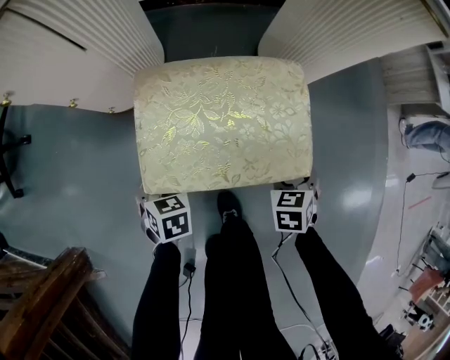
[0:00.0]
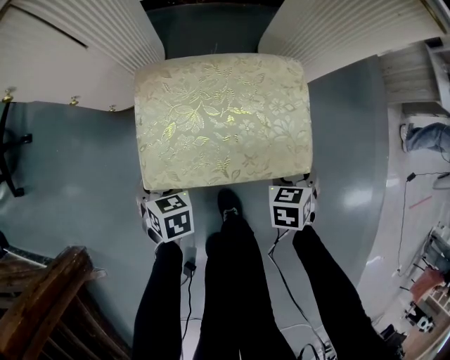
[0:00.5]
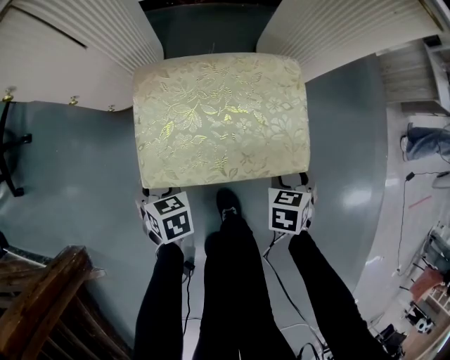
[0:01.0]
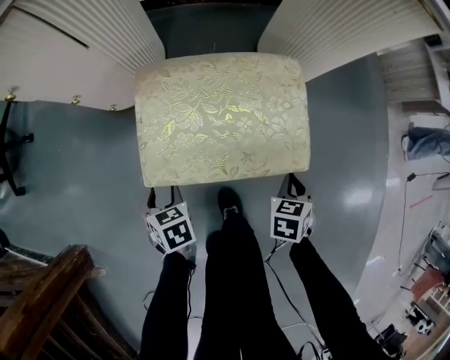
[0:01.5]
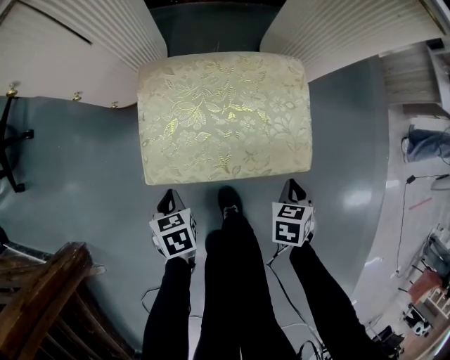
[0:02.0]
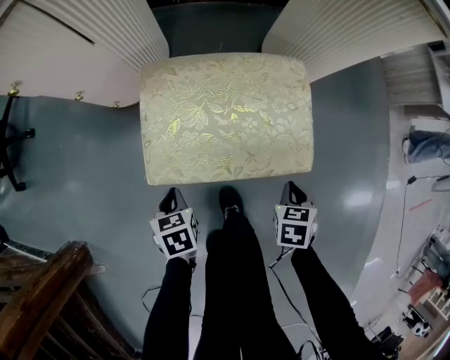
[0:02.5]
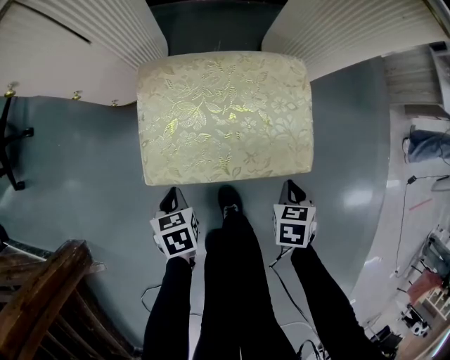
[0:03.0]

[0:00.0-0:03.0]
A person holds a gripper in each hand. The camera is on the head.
0:00.0 to 0:01.5: Both grippers move backward, roughly 5 cm. The right gripper closes.
0:01.5 to 0:03.0: The left gripper closes up.

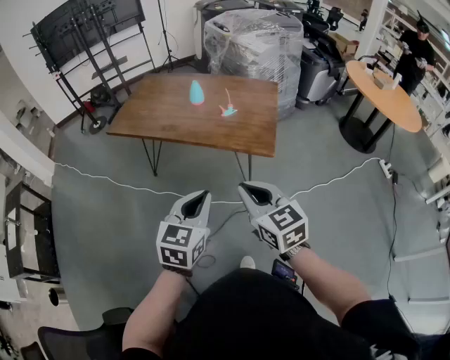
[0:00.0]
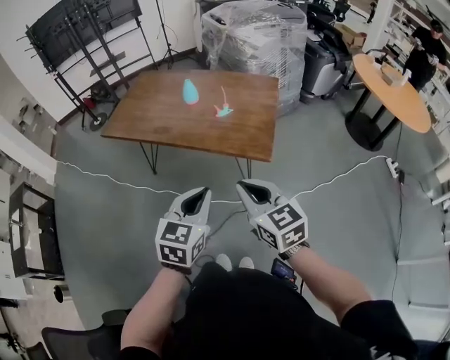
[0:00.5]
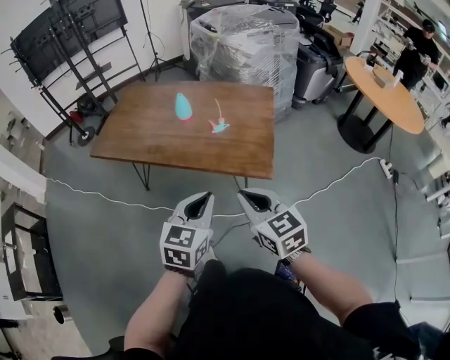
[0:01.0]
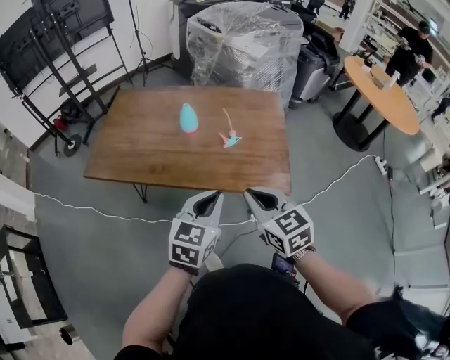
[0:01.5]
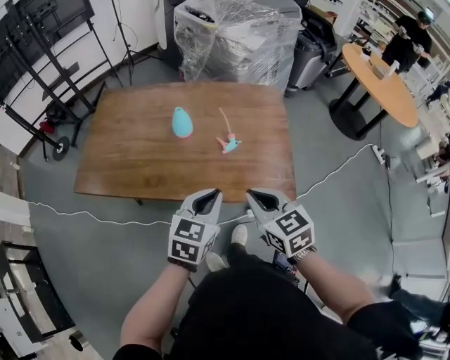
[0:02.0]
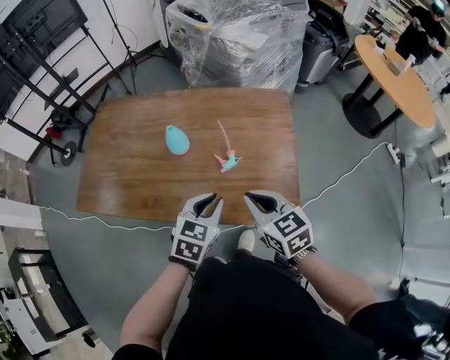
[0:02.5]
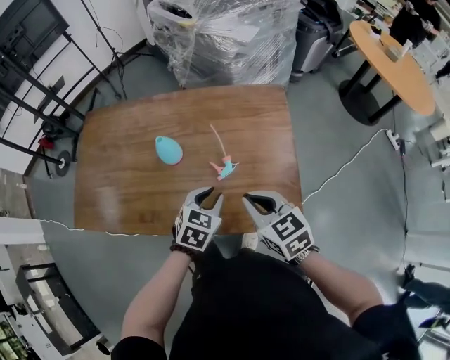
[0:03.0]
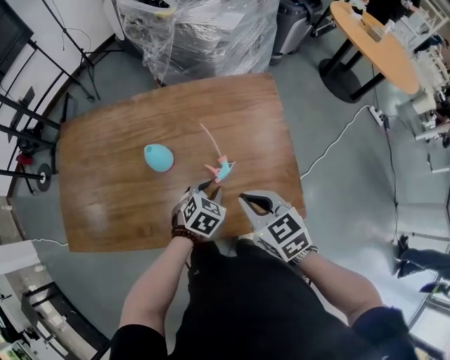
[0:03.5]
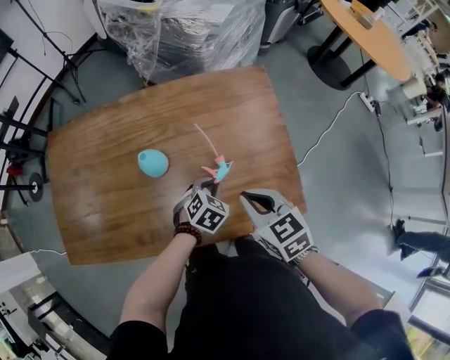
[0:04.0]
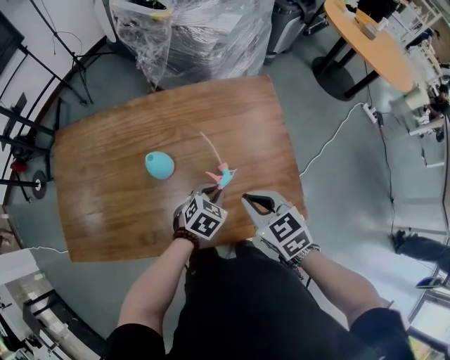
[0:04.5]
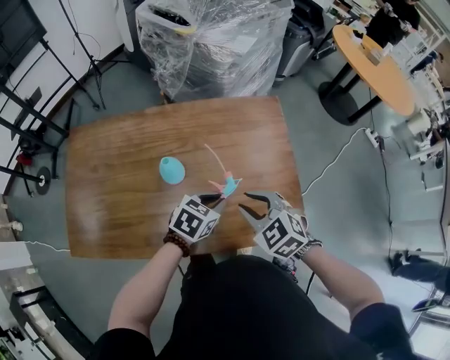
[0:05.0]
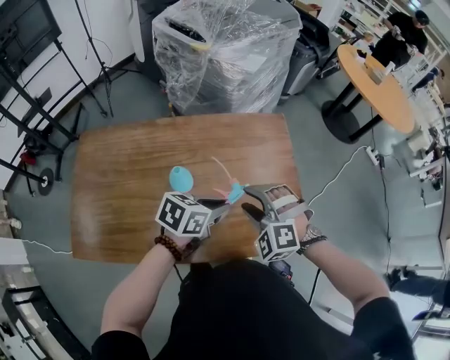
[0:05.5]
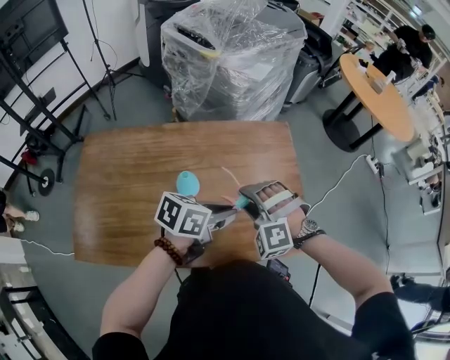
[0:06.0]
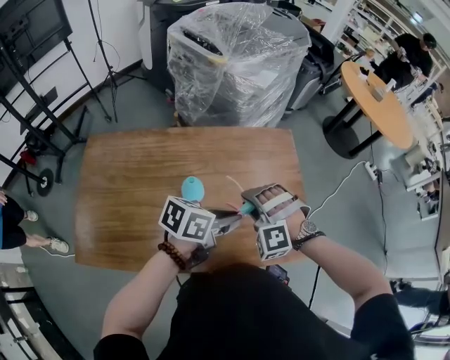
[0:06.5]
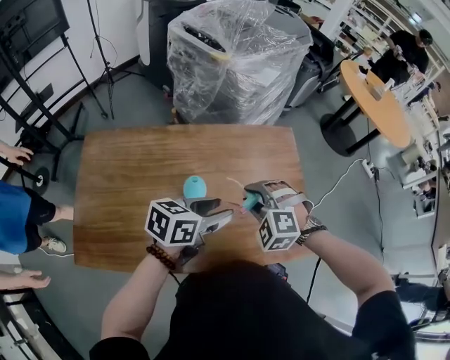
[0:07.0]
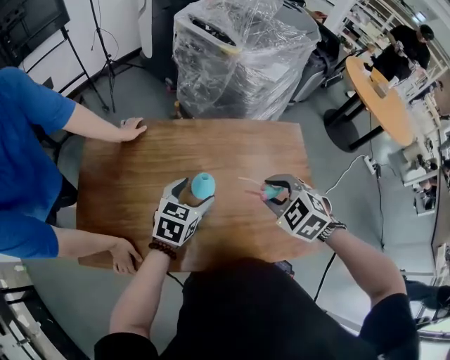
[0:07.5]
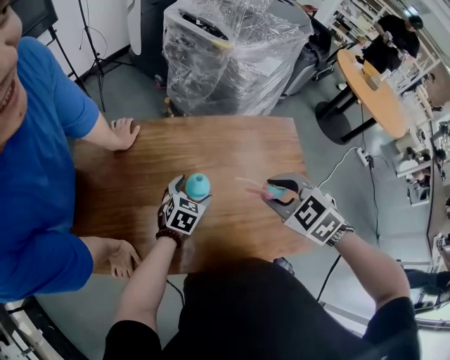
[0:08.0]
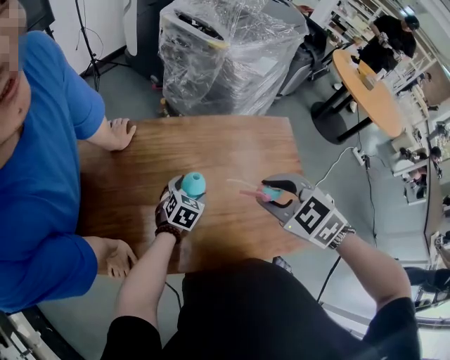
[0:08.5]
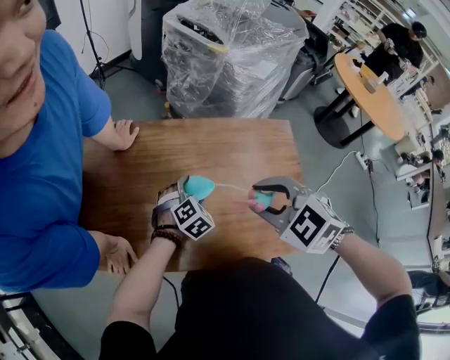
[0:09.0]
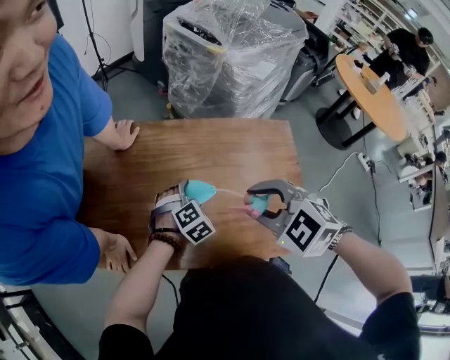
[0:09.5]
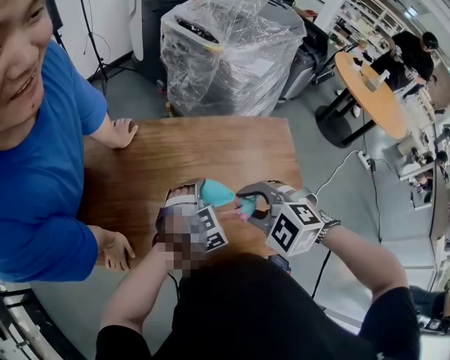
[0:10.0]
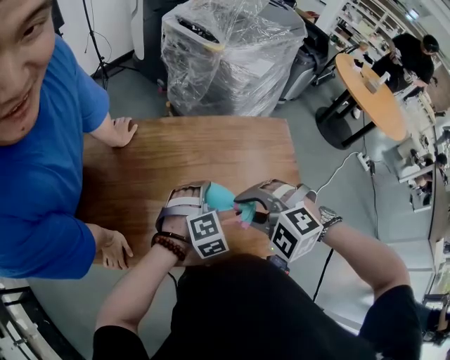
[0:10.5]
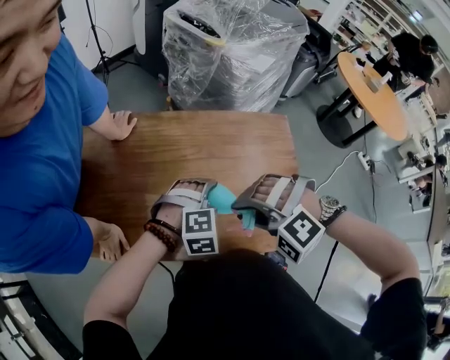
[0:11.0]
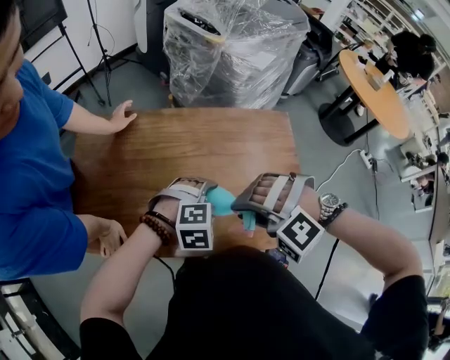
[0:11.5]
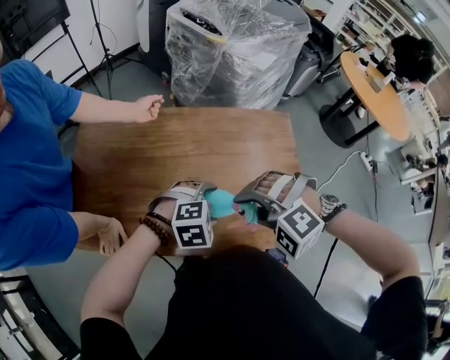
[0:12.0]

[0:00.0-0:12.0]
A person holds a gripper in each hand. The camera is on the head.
0:00.0 to 0:02.0: The two grippers go approximately 30 cm forward. The left gripper swivels approximately 20 degrees.
0:02.0 to 0:04.0: The left gripper goes about 30 cm downward and forward, and tilts its fingers about 30 degrees downward, while the right gripper shifts about 15 cm forward and downward.
0:04.0 to 0:06.0: The right gripper heads to the left, covering approximately 10 cm, rolls counterclockwise, seen from behind, by approximately 90 degrees, and opens. Meanwhile the left gripper moves upward, some 20 cm, and tips its fingers upward by some 30 degrees.
0:06.0 to 0:08.0: The left gripper ends up roughly 25 cm from where it was, rotates about 40 degrees, and opens its fingers. Meanwhile the right gripper travels upward by approximately 5 cm, and twists approximately 50 degrees clockwise, seen from behind.
0:08.0 to 0:10.0: The right gripper heads to the left, covering approximately 5 cm, and changes its angle by roughly 30 degrees; the left gripper heads backward and upward, covering approximately 10 cm, and rolls clockwise, seen from behind, by about 40 degrees.
0:10.0 to 0:12.0: The left gripper moves backward, roughly 10 cm, and turns by approximately 30 degrees; the right gripper moves some 5 cm, and rotates roughly 30 degrees.

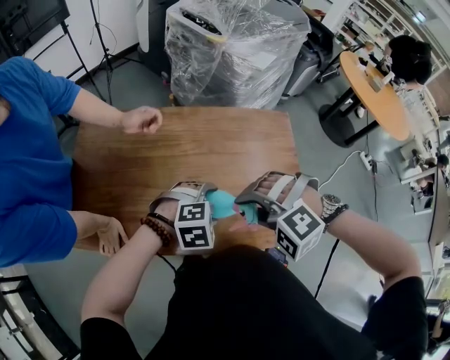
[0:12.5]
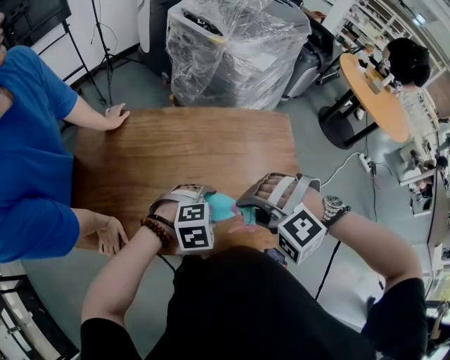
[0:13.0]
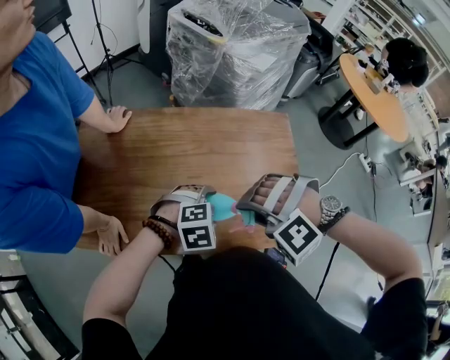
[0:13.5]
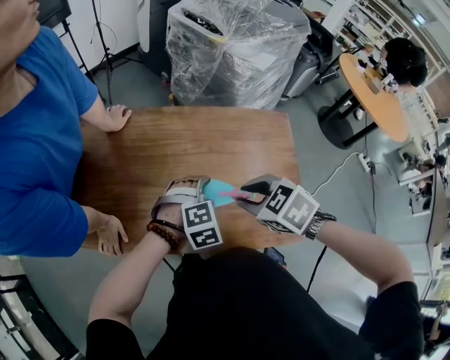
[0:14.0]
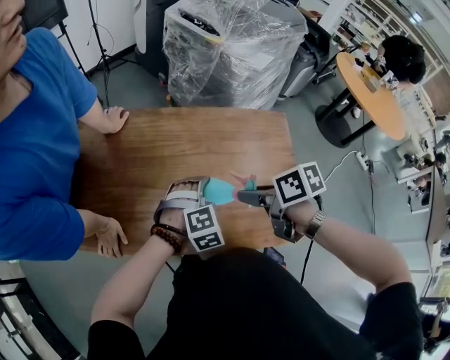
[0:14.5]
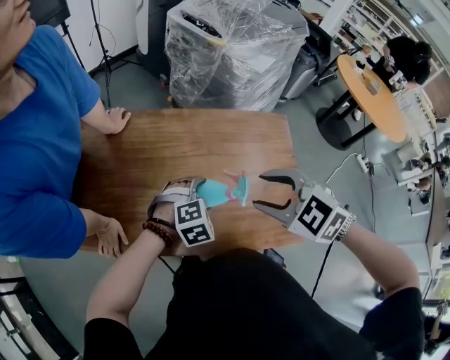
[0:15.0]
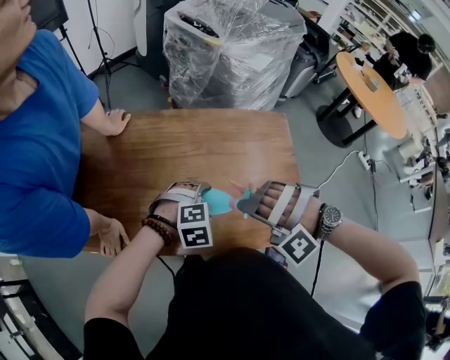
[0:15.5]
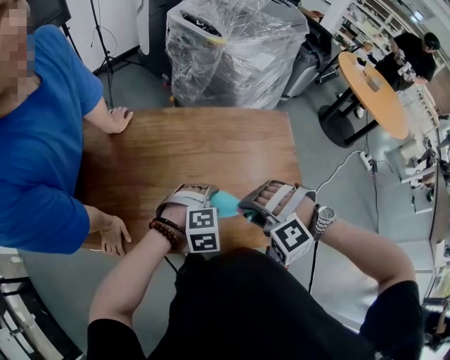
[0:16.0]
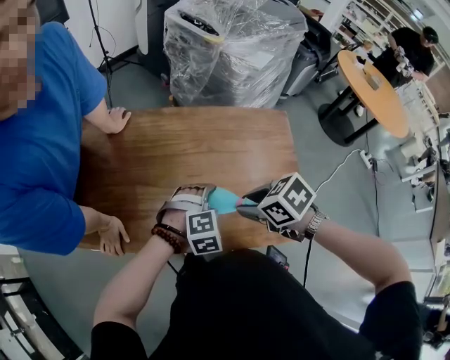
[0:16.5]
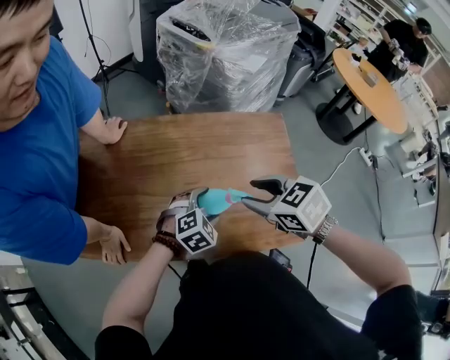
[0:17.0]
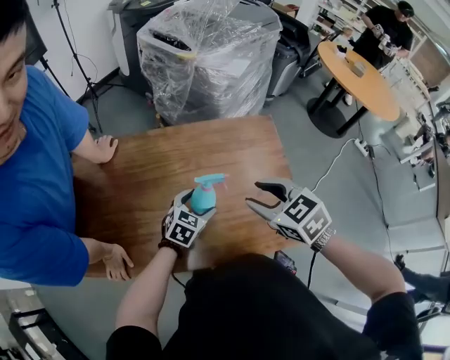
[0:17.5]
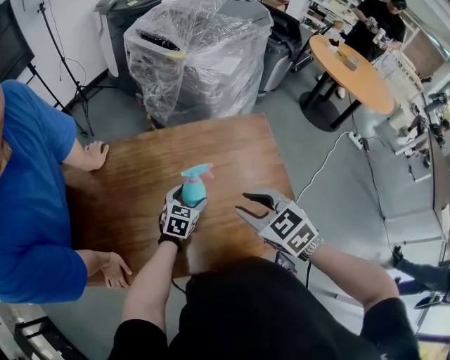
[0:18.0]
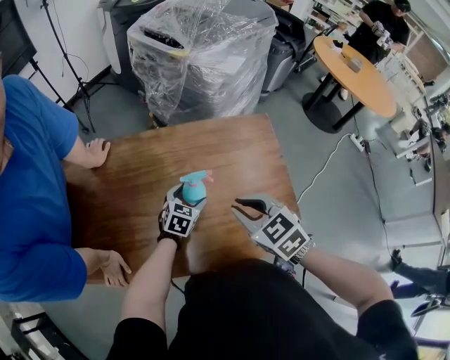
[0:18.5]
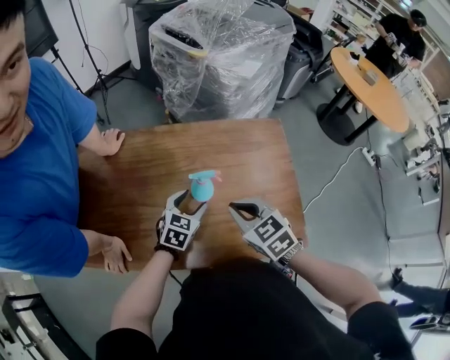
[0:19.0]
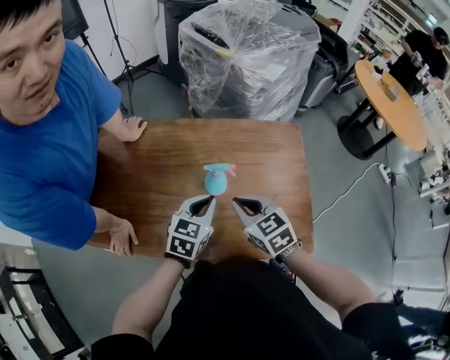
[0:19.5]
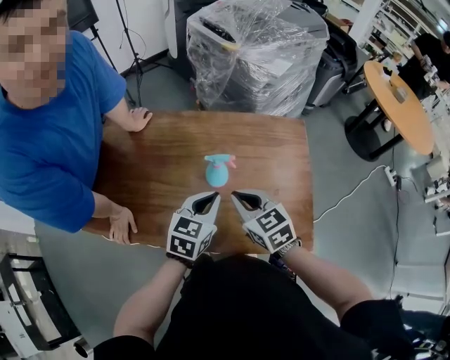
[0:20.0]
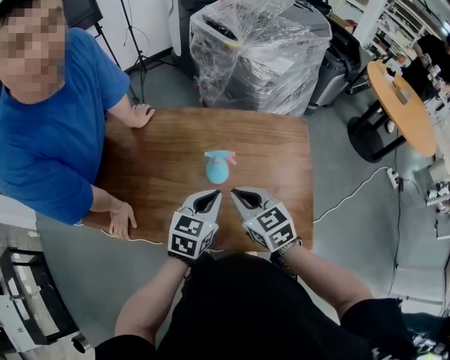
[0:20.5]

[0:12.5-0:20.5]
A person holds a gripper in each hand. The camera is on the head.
0:12.5 to 0:14.5: The right gripper moves approximately 5 cm, and rotates around the line of its fingers by some 120 degrees, clockwise from behind; the left gripper swivels roughly 20 degrees.
0:14.5 to 0:16.5: The right gripper travels upward and back again, roughly 5 cm each way, and turns by some 30 degrees.
0:16.5 to 0:18.5: The right gripper rotates about 30 degrees. The left gripper moves forward and downward, some 15 cm, and twists roughly 50 degrees counterclockwise, seen from behind.
0:18.5 to 0:20.5: The left gripper goes roughly 20 cm upward and backward, rotates approximately 20 degrees, and closes its fingers.

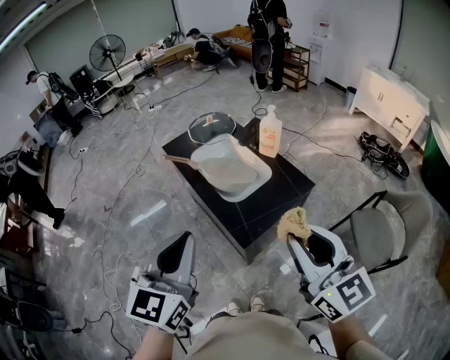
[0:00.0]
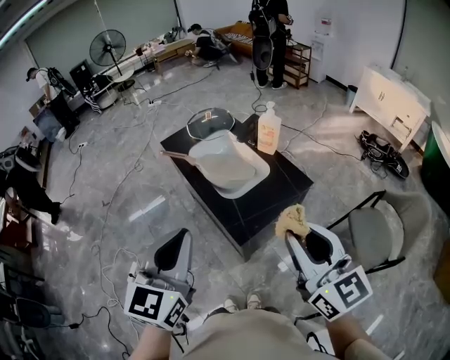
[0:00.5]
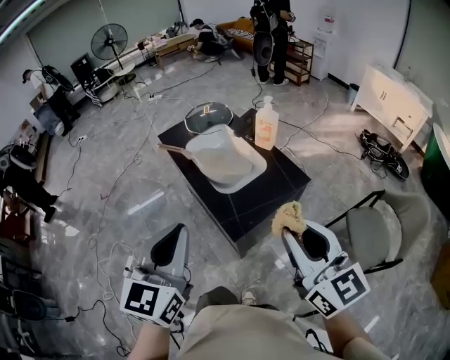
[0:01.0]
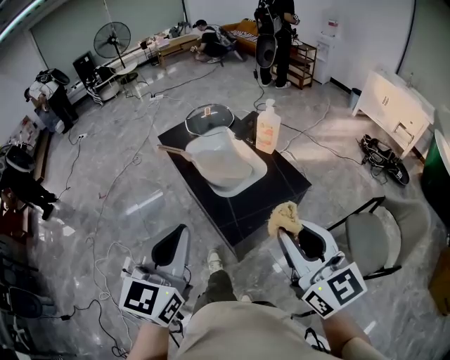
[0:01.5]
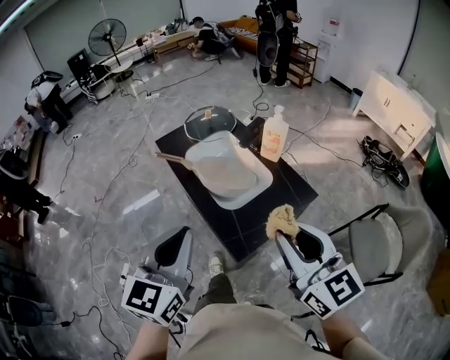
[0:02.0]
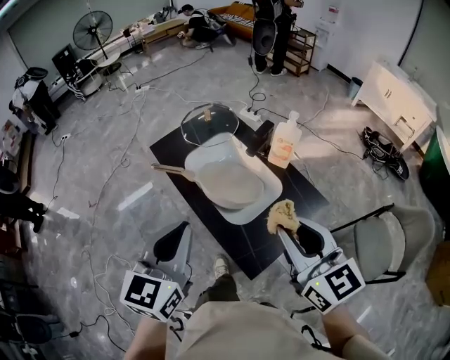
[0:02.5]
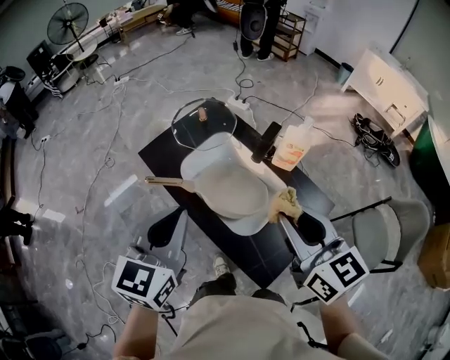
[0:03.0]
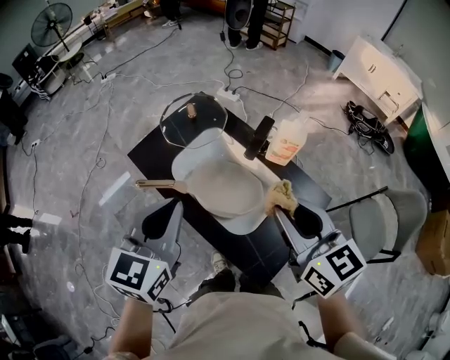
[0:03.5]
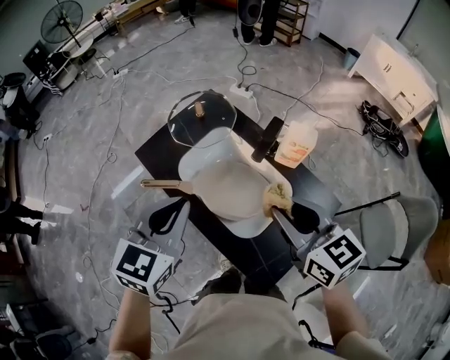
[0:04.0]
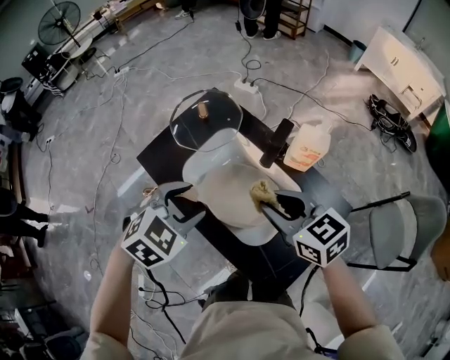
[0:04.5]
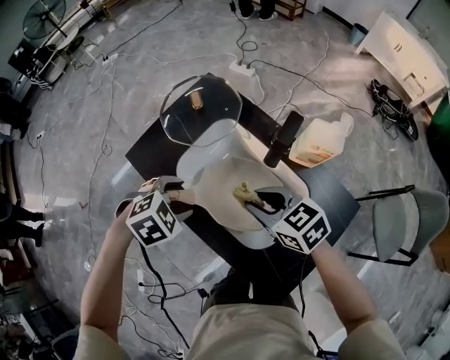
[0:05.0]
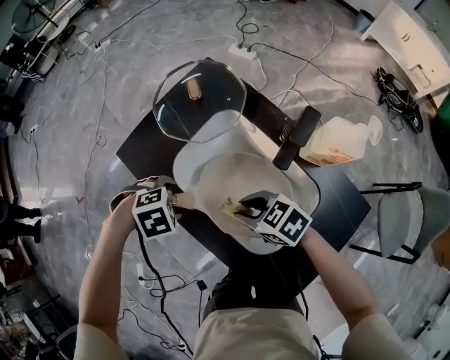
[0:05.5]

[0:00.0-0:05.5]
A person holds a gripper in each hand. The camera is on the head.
0:00.0 to 0:02.0: The right gripper goes about 10 cm forward. The left gripper shifts about 10 cm forward and downward.
0:02.0 to 0:03.5: Both grippers travel together forward, approximately 25 cm.
0:03.5 to 0:05.5: Both grippers travel together downward, roughly 30 cm. The right gripper swivels some 50 degrees; the left gripper tips its fingers downward by about 70 degrees, and opens up.
